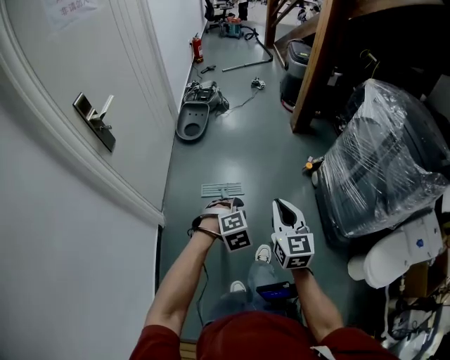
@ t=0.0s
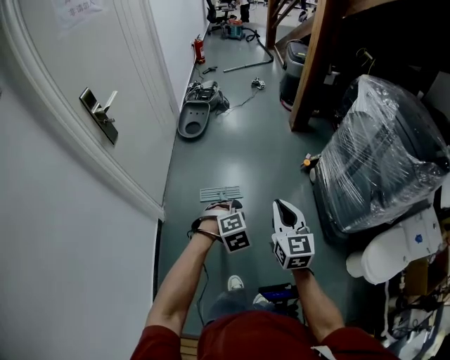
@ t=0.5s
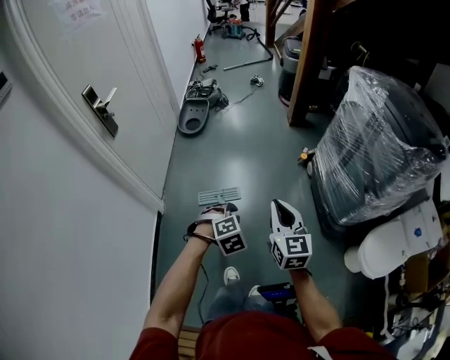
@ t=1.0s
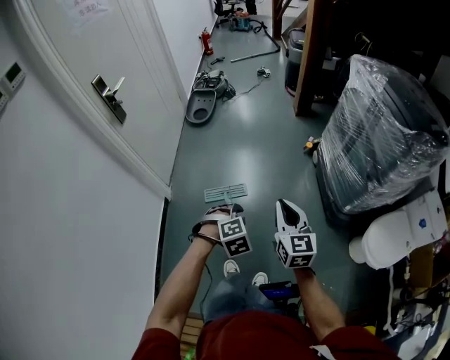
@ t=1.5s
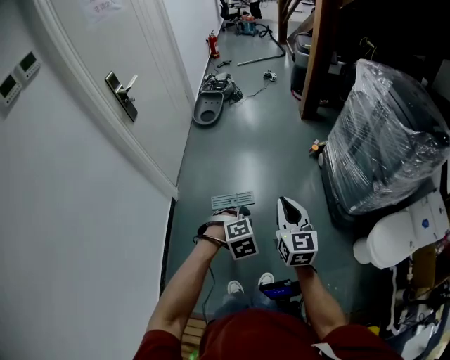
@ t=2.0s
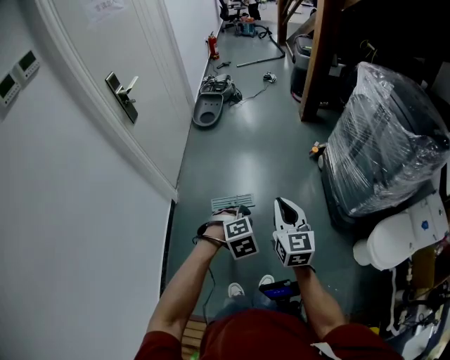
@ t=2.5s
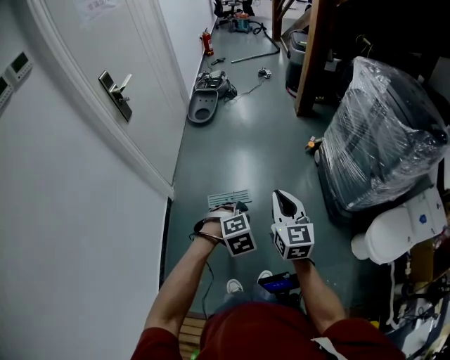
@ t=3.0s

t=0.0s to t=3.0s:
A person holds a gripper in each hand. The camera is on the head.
t=0.0s to t=1.5s: The grippers both shift backward and to the right by some 25 cm.
t=1.5s to t=3.0s: The right gripper moves to the left, approximately 10 cm. Meanwhile the left gripper ends up some 5 cm from where it was.

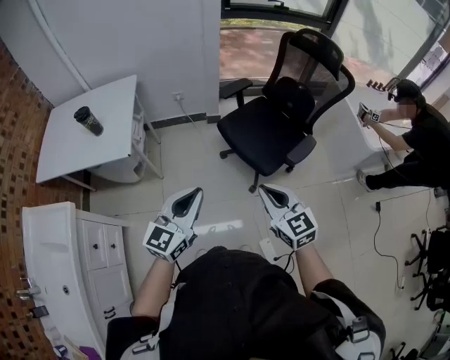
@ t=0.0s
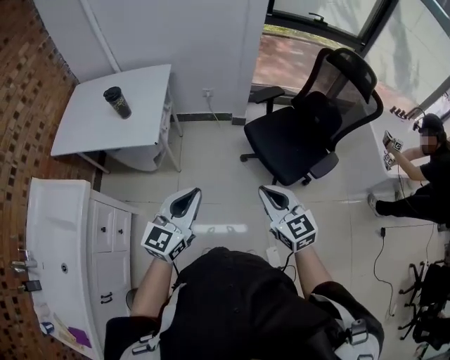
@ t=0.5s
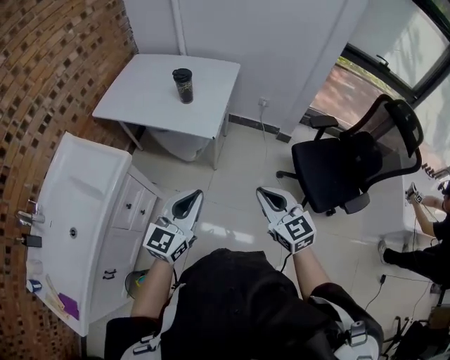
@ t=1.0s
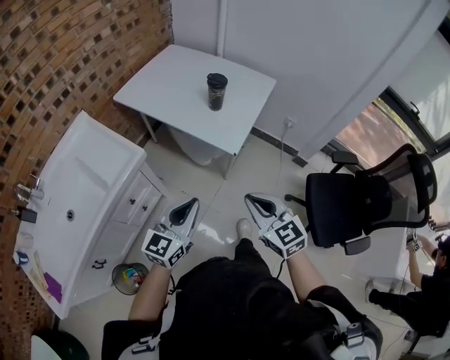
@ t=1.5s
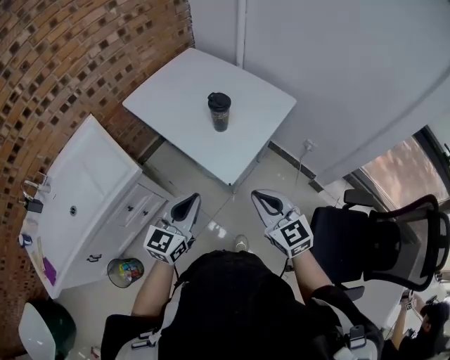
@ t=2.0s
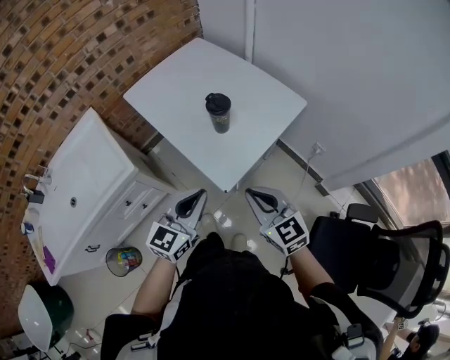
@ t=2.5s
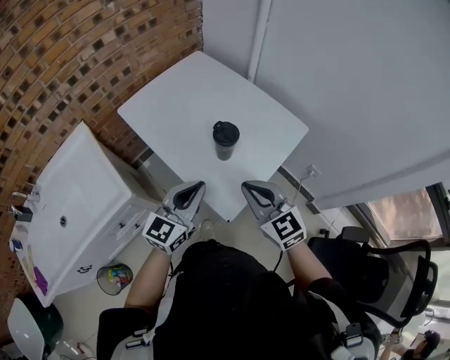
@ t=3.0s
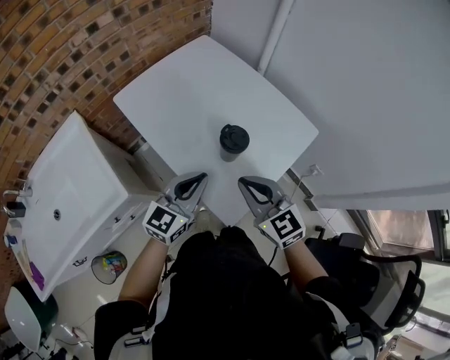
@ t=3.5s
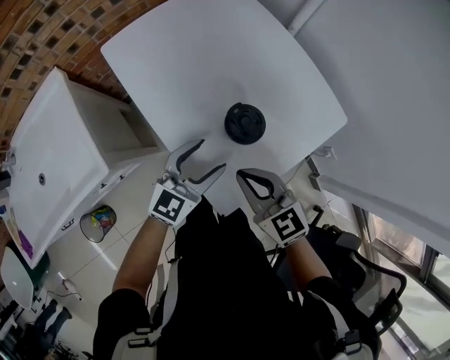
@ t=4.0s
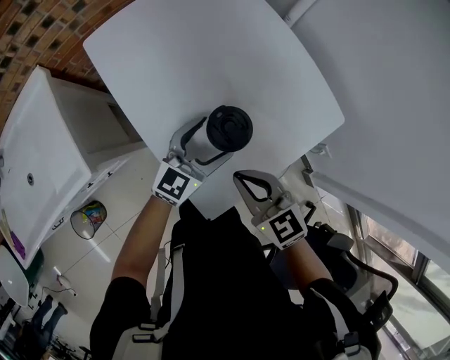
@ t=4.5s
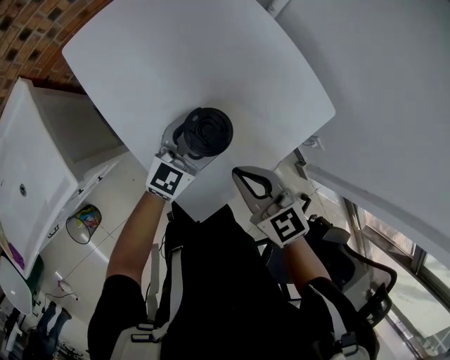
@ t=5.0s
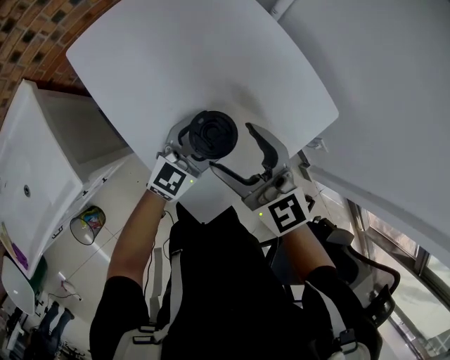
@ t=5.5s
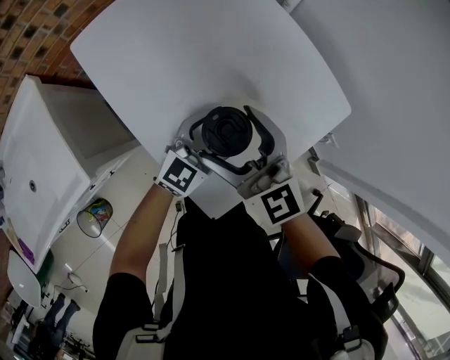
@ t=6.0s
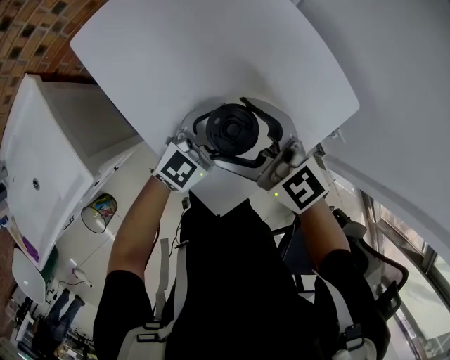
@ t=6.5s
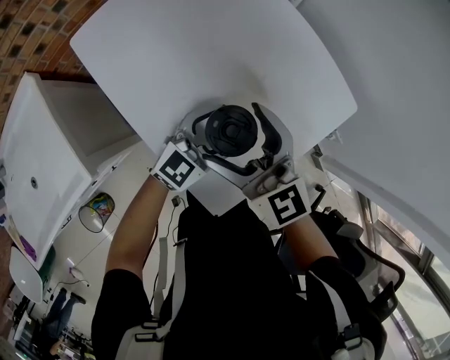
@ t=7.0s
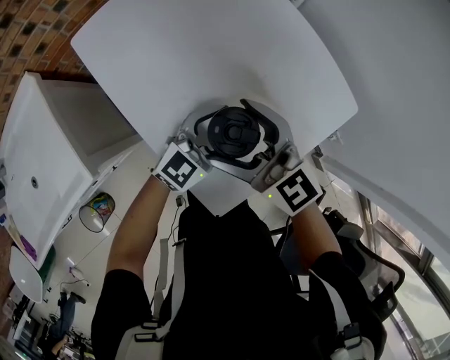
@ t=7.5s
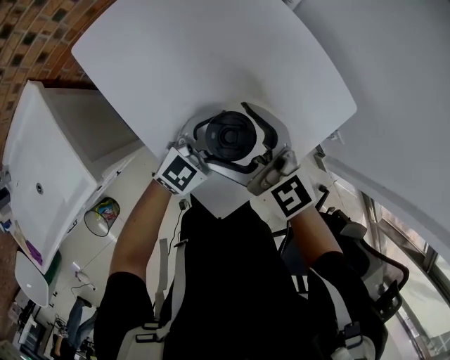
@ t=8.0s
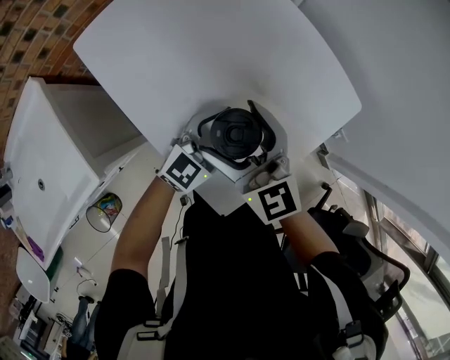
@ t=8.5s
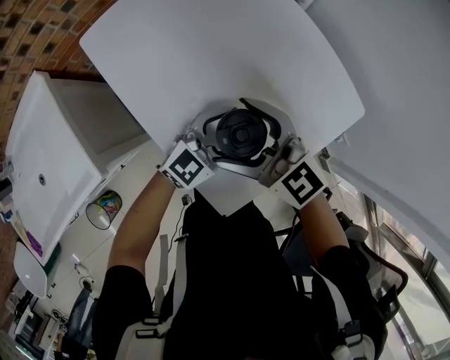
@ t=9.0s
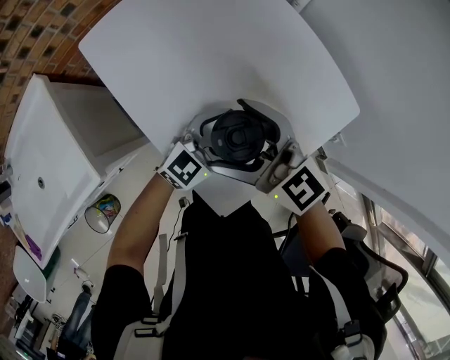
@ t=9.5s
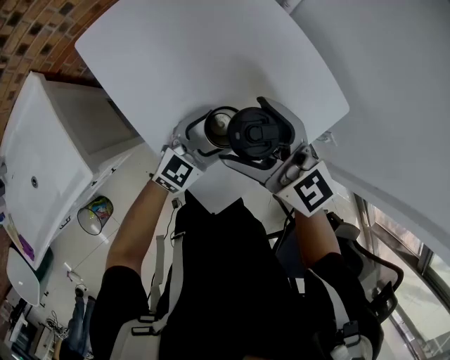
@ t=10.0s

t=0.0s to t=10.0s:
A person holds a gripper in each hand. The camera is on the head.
t=0.0s to t=2.0s: The right gripper changes place by approximately 50 cm, and swivels roughly 50 degrees, while the left gripper changes place by about 40 cm, and changes its angle by approximately 50 degrees.
t=2.0s to t=4.0s: Both grippers travel together forward and downward, about 30 cm. The left gripper opens its fingers, while the right gripper changes its angle by roughly 20 degrees.
t=4.0s to t=6.0s: The right gripper goes about 10 cm forward, and opens up. Meanwhile the left gripper shifts roughly 10 cm to the right, forward and downward.
t=8.0s to t=10.0s: The grippers move only a little.

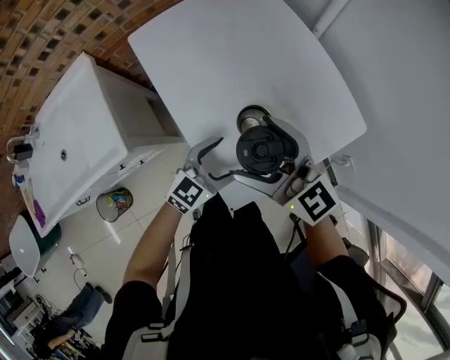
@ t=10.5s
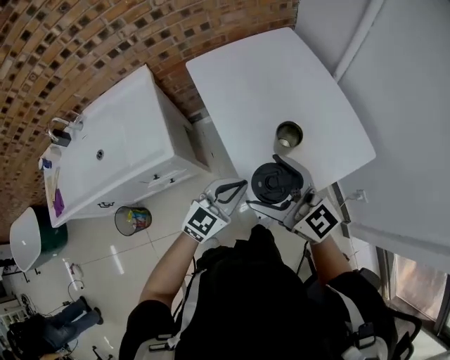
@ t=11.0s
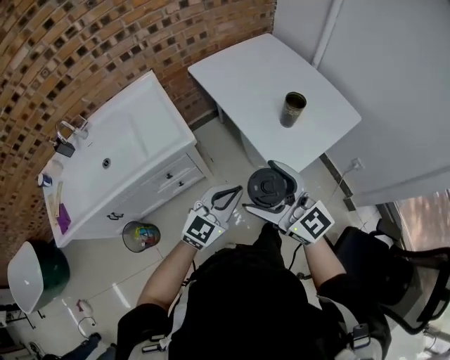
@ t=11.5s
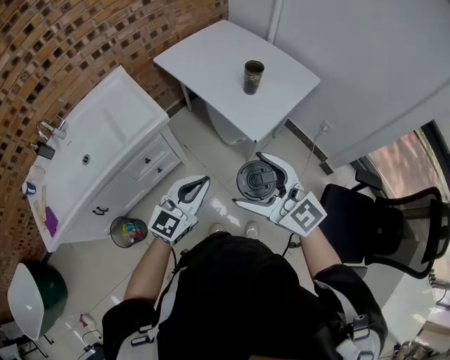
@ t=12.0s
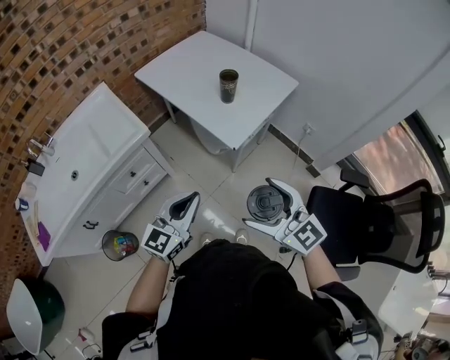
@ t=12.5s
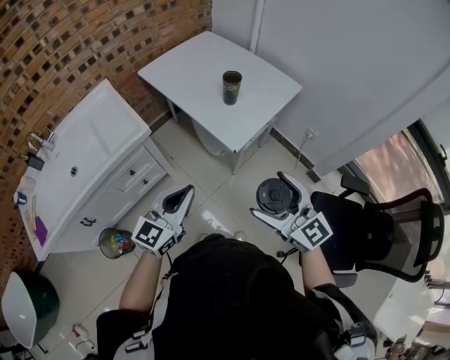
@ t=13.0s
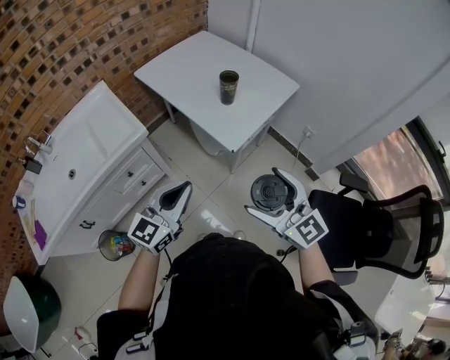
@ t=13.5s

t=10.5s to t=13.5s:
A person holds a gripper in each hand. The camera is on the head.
t=10.5s to t=12.0s: The two grippers travel together, backward and to the left, approximately 40 cm. The left gripper is displaced upward by some 20 cm, and closes up.
t=12.0s to t=13.5s: The right gripper heads to the right, covering some 10 cm.

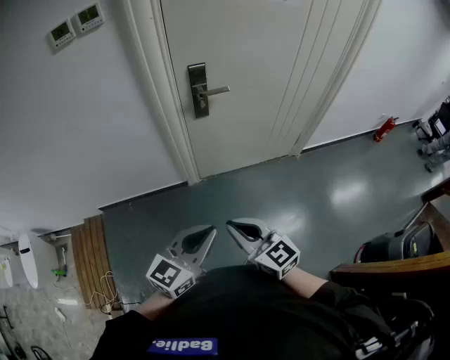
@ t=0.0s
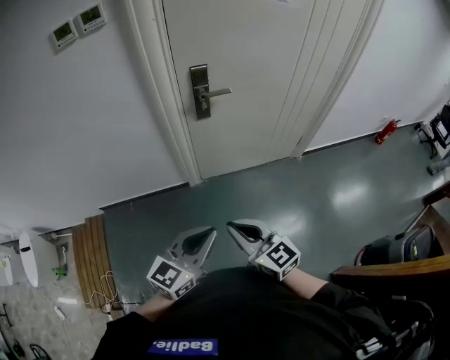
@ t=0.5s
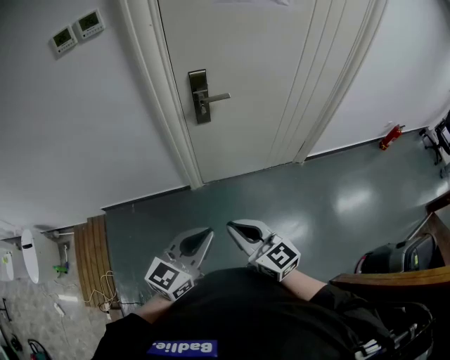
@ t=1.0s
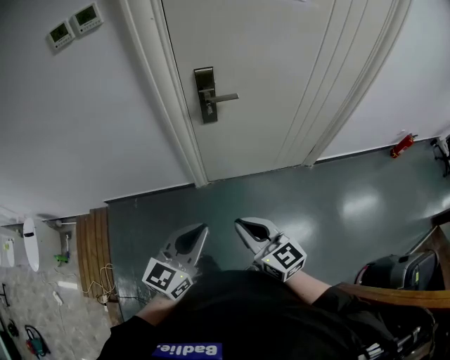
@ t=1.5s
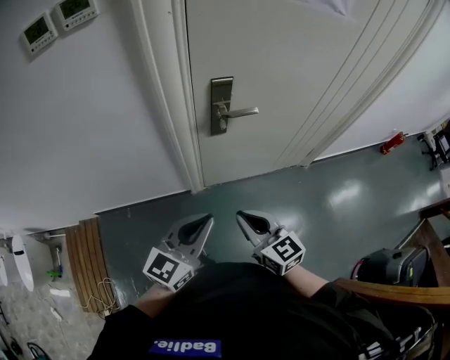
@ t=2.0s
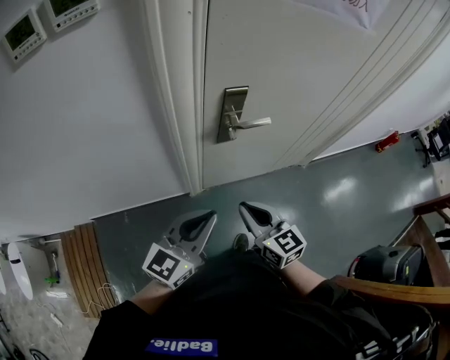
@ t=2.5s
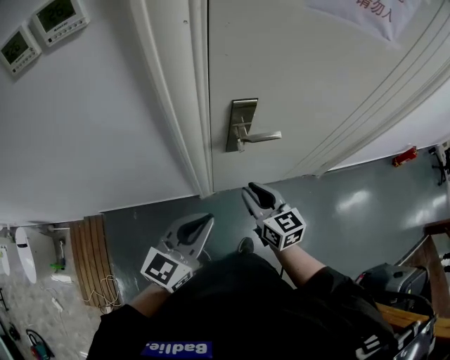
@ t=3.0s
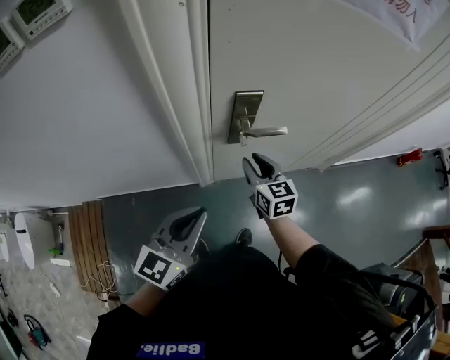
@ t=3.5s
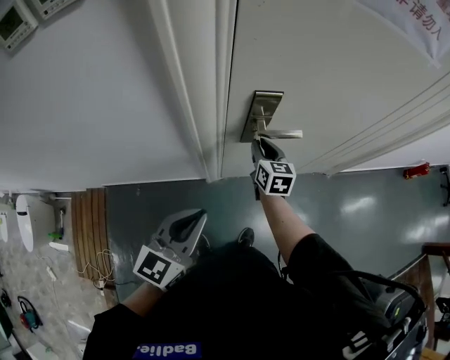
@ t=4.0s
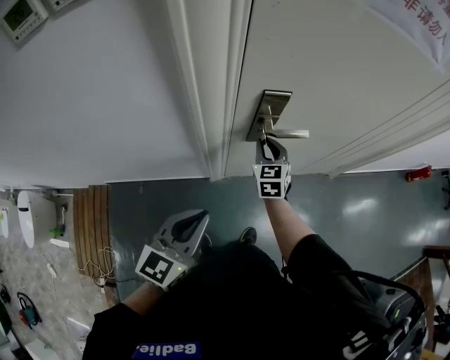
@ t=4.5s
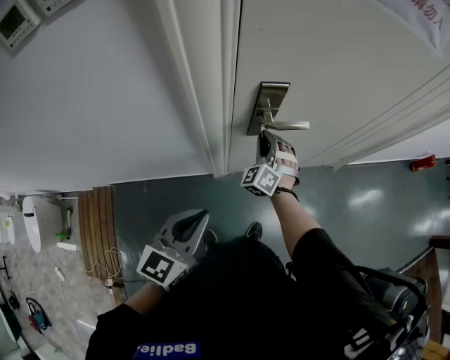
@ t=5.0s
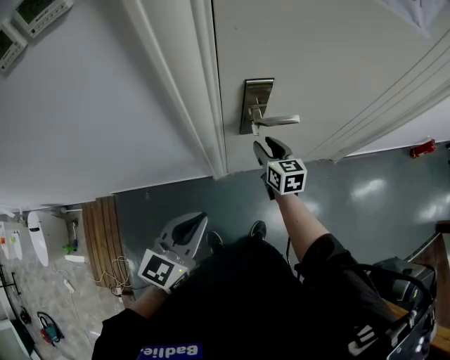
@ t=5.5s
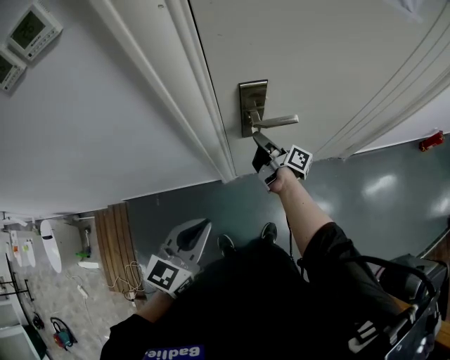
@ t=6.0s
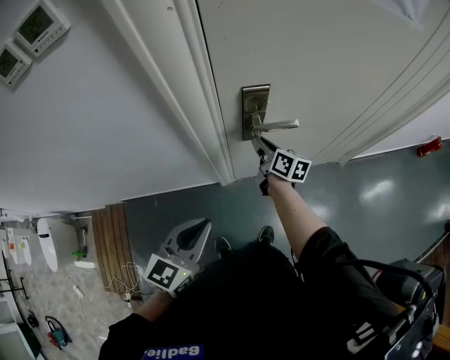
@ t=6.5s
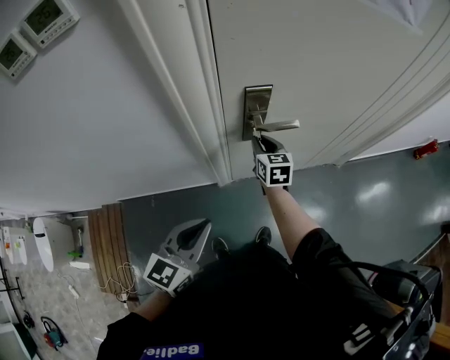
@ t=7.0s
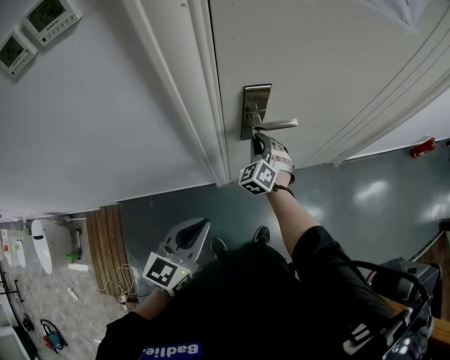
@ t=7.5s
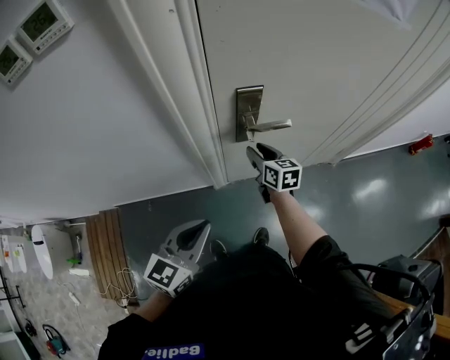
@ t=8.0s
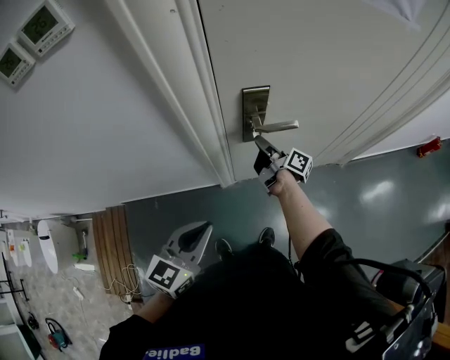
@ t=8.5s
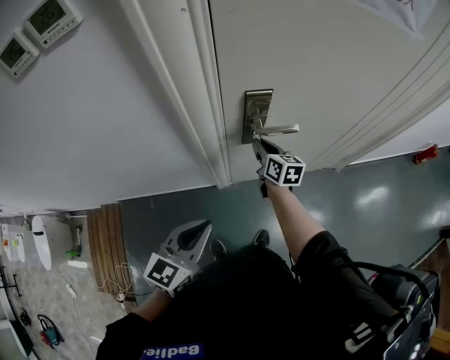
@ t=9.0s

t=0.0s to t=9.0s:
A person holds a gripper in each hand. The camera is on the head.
t=0.0s to t=2.0s: Both grippers move forward, some 20 cm.
t=2.0s to t=4.5s: The left gripper goes some 15 cm forward and to the left; the right gripper heads forward, covering approximately 35 cm, and changes its angle by about 30 degrees.

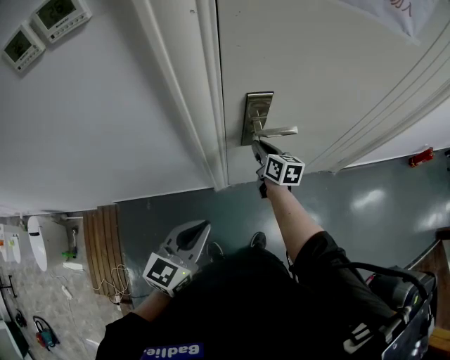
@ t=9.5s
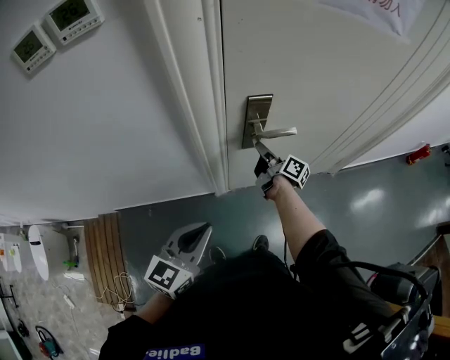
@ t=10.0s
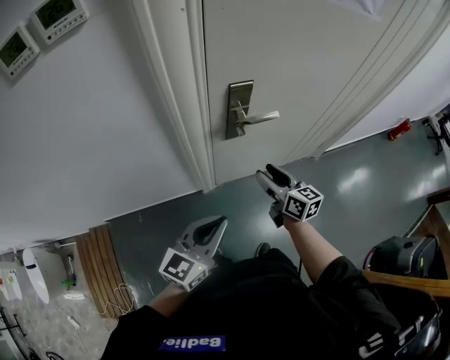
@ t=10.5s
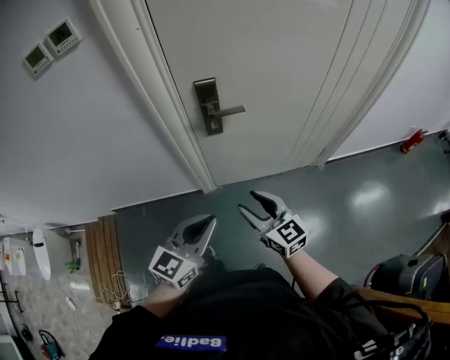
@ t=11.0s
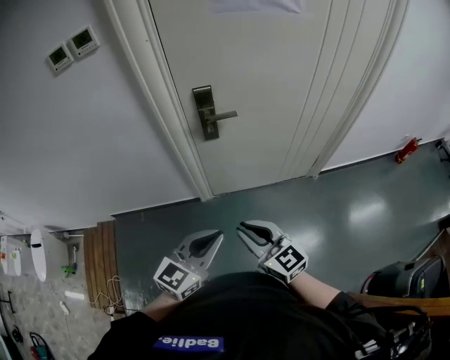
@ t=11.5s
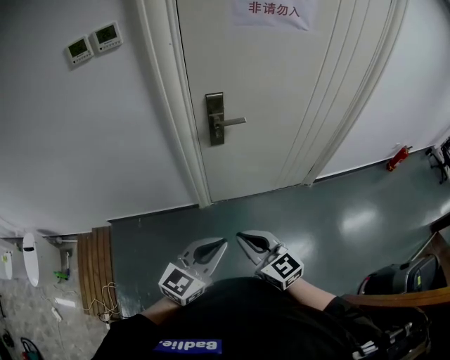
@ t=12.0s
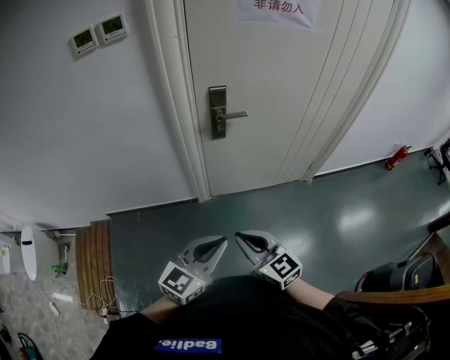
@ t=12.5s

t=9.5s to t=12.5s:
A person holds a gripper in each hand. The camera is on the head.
t=9.5s to t=11.0s: The left gripper is displaced to the right and backward by some 20 cm, while the right gripper moves backward, about 30 cm, rotates some 30 degrees, and opens its fingers.
t=11.0s to t=12.5s: The two grippers go some 15 cm backward. The right gripper closes up.
